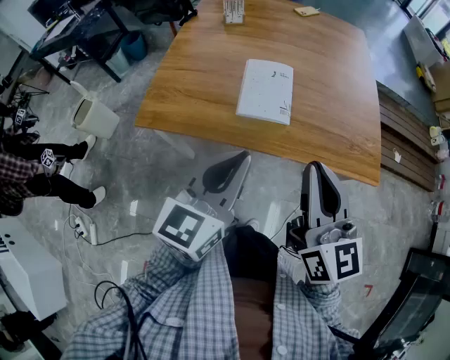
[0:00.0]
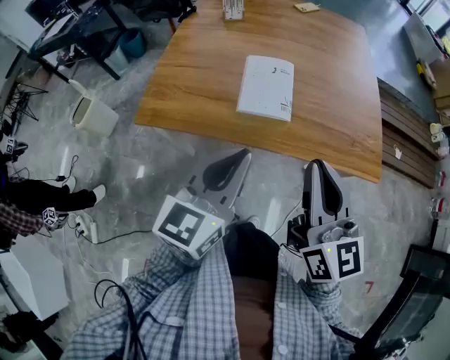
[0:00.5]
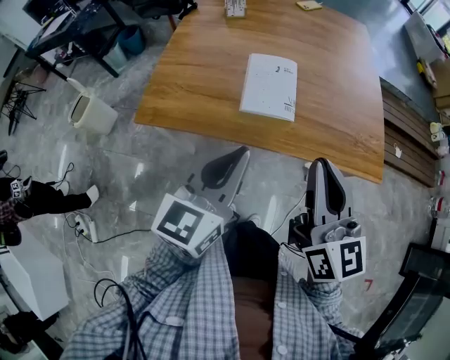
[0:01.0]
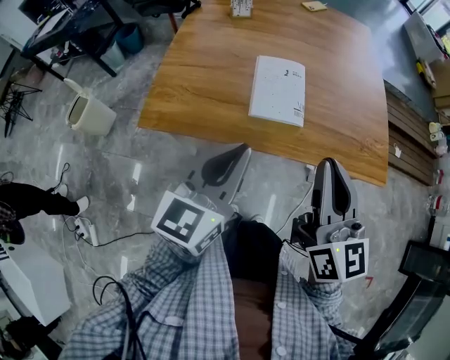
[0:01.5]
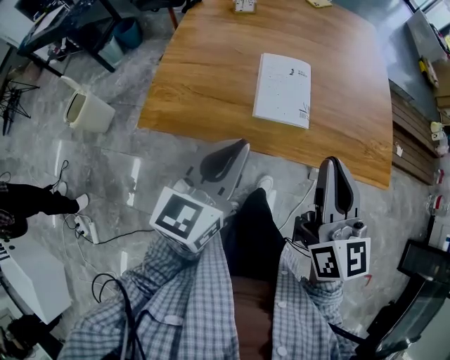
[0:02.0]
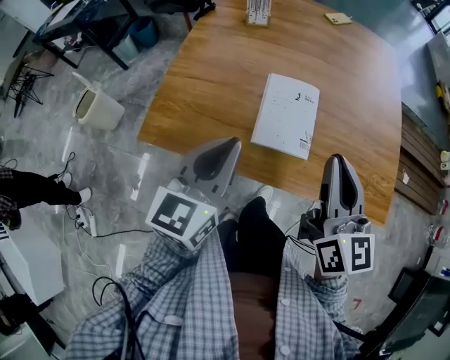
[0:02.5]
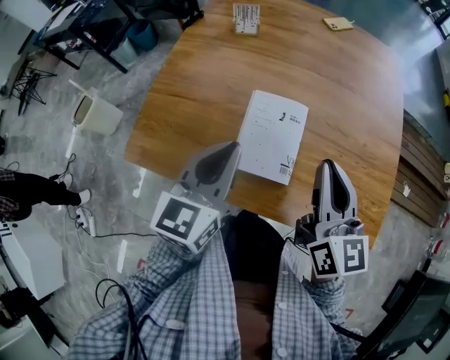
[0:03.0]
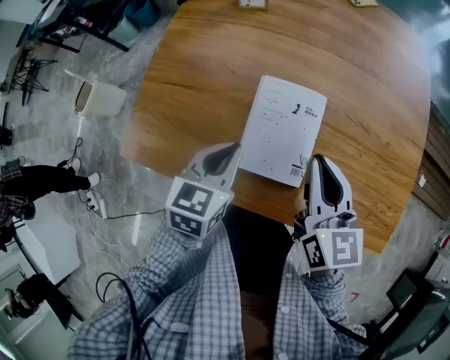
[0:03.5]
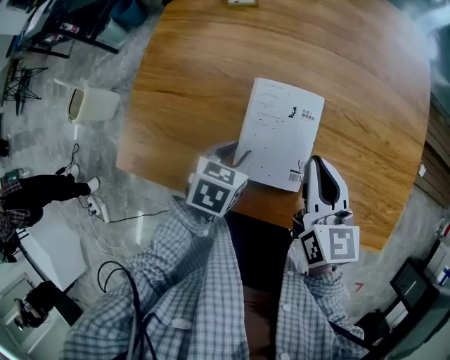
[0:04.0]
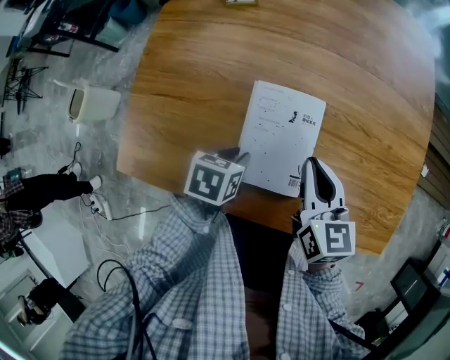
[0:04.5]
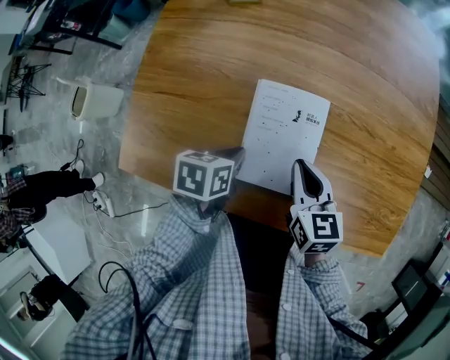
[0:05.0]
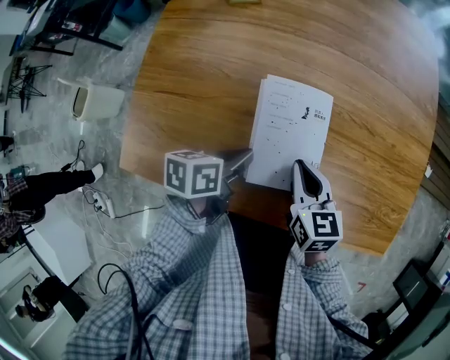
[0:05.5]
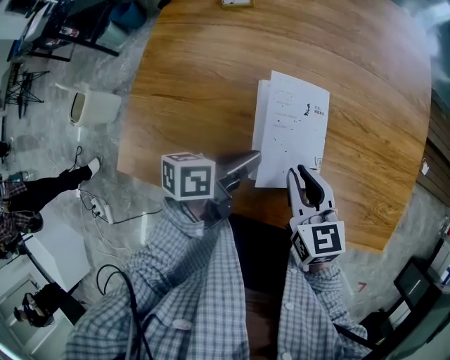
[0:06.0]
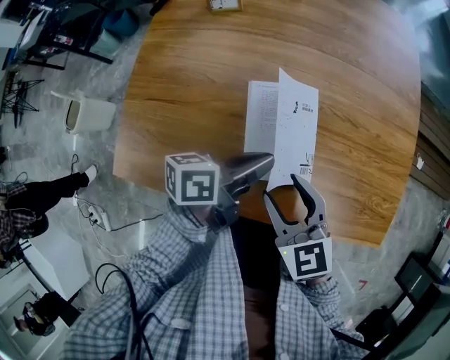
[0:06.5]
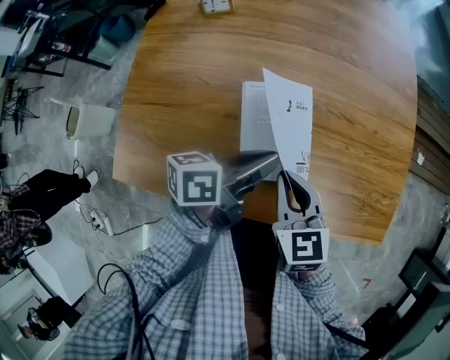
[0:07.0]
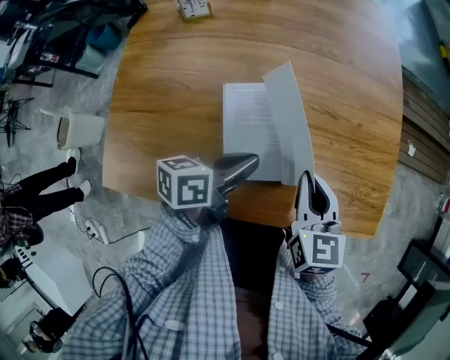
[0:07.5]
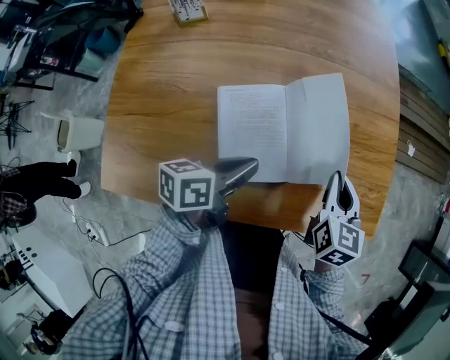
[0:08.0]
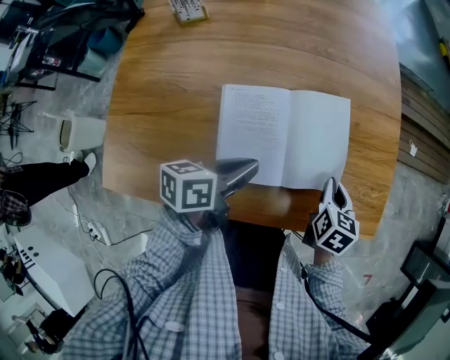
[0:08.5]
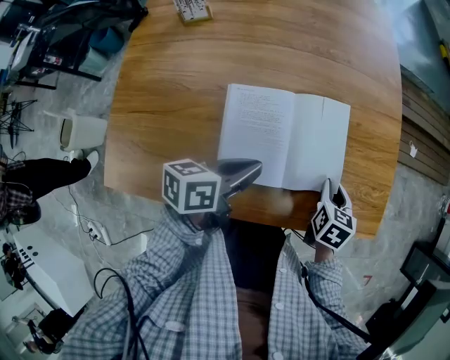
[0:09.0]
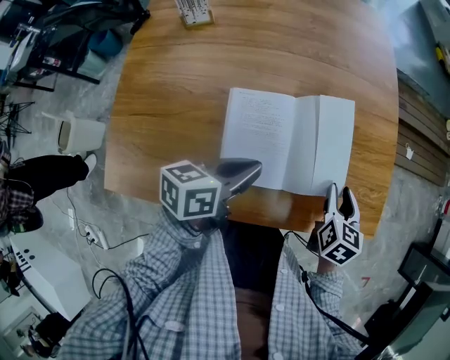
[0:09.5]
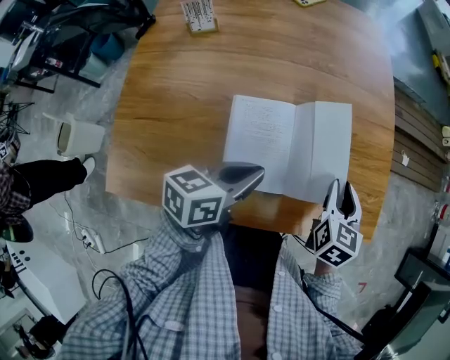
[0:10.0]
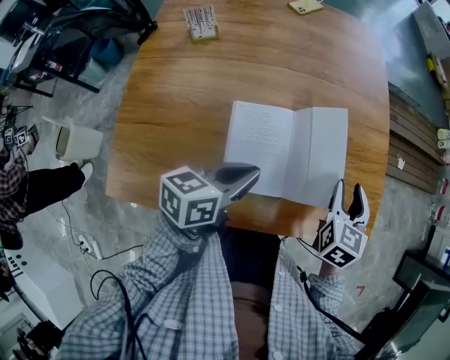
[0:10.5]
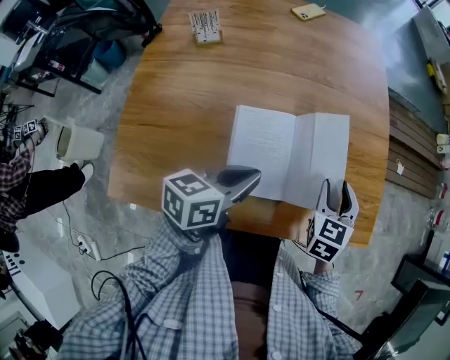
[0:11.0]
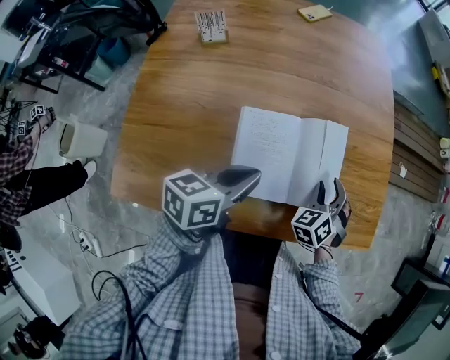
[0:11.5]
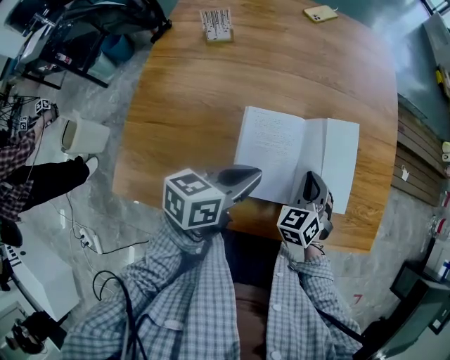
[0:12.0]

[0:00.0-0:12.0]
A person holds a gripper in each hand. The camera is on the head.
0:00.0 to 0:02.0: The right gripper goes roughly 10 cm forward and to the left; the left gripper moves to the left and forward, some 10 cm.
0:02.0 to 0:04.0: The right gripper goes some 30 cm forward and downward, and rotates approximately 20 degrees, while the left gripper goes about 35 cm downward and forward, angles its fingers downward, by some 50 degrees, and opens its fingers.
0:04.0 to 0:06.0: The left gripper shifts about 5 cm upward, angles its fingers upward, by approximately 30 degrees, and closes up, while the right gripper shifts approximately 5 cm downward.
0:06.0 to 0:08.0: The left gripper moves to the right, some 10 cm, while the right gripper travels to the right by about 20 cm, rotates some 40 degrees, and opens, then closes once more.
0:08.0 to 0:10.0: The right gripper travels downward and back again, some 10 cm each way, and opens its fingers.
0:10.0 to 0:12.0: The right gripper goes about 10 cm to the left and downward, rolls counterclockwise, seen from behind, by about 40 degrees, and closes up.

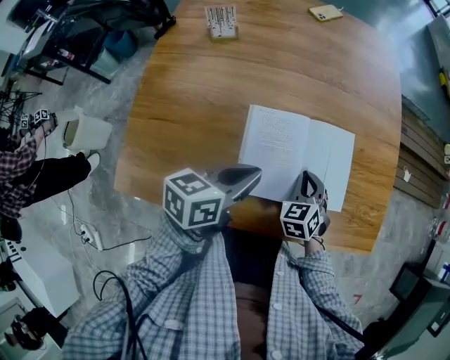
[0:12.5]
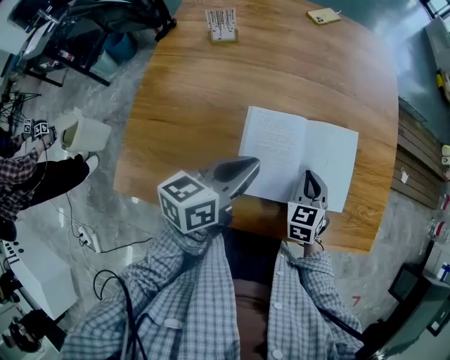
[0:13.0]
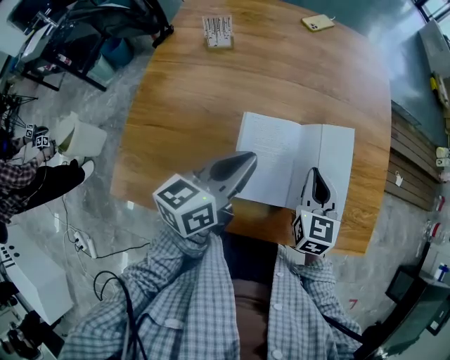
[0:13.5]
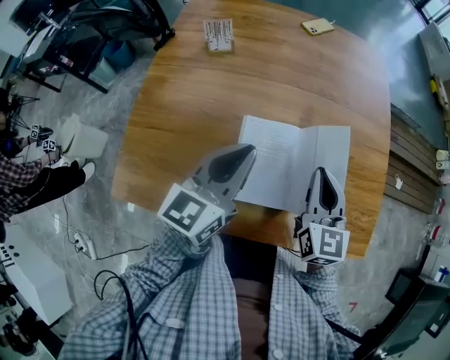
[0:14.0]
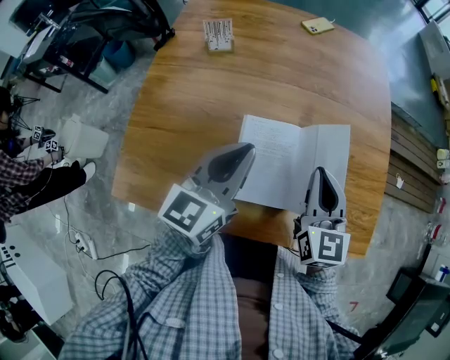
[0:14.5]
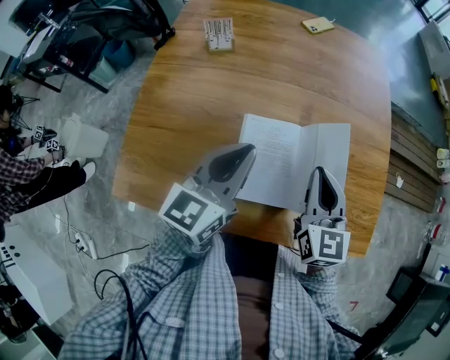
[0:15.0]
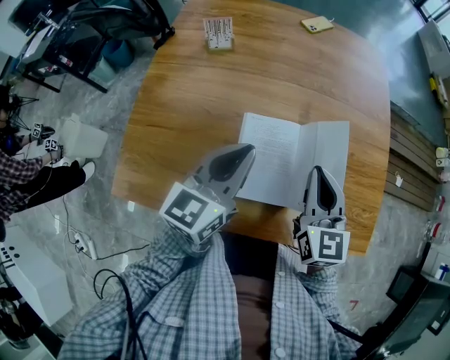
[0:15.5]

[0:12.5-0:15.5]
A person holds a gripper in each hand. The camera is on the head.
0:12.5 to 0:14.0: The right gripper is displaced upward by some 20 cm, and tilts its fingers about 30 degrees upward, while the left gripper heads upward, covering about 10 cm, and rotates approximately 40 degrees.
0:14.0 to 0:15.5: There are only small adjustments of the grippers.

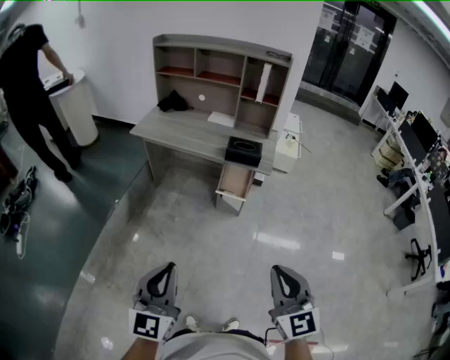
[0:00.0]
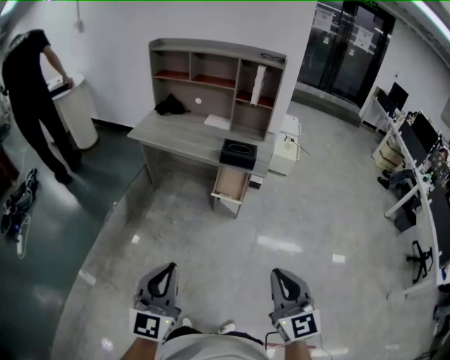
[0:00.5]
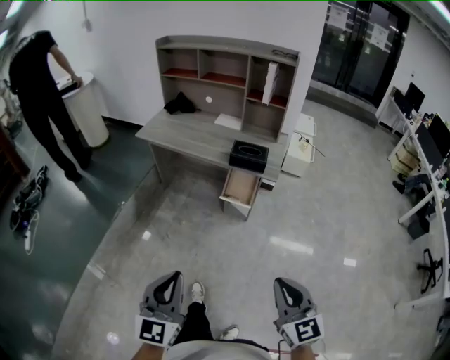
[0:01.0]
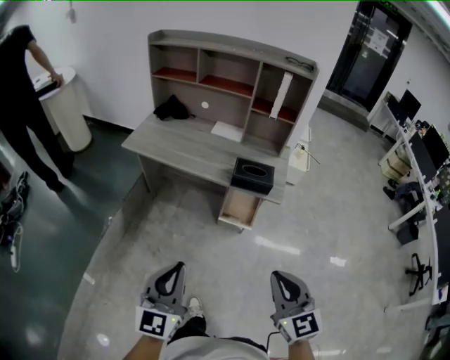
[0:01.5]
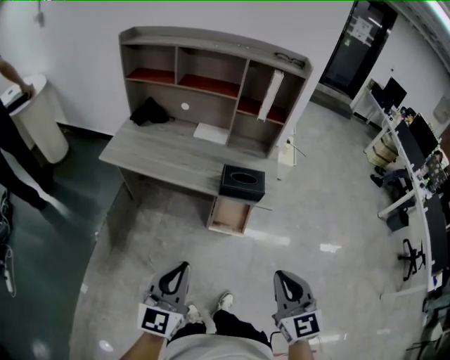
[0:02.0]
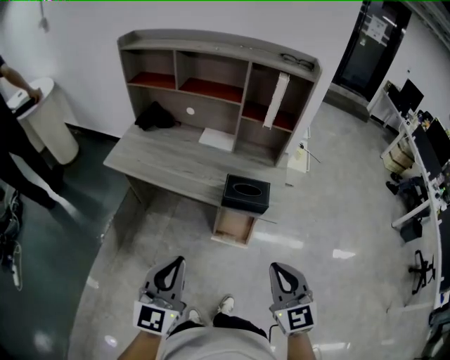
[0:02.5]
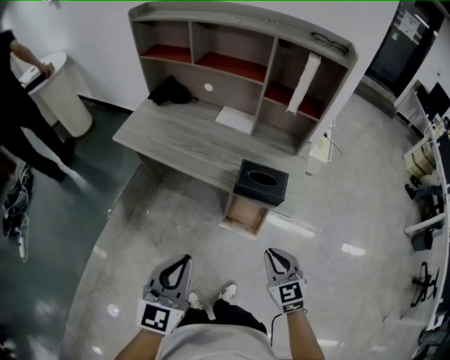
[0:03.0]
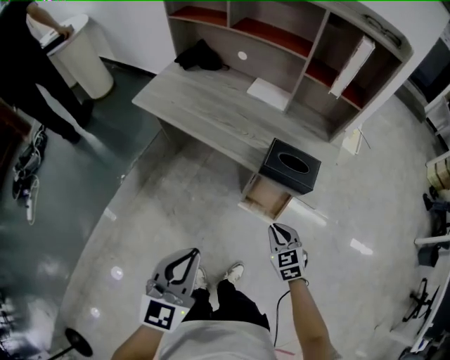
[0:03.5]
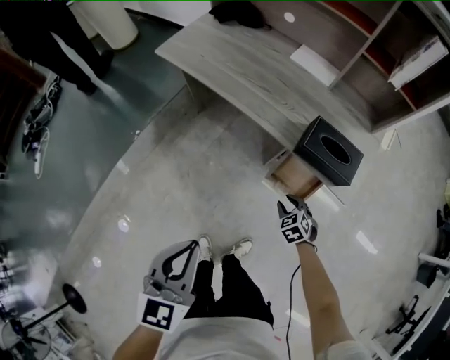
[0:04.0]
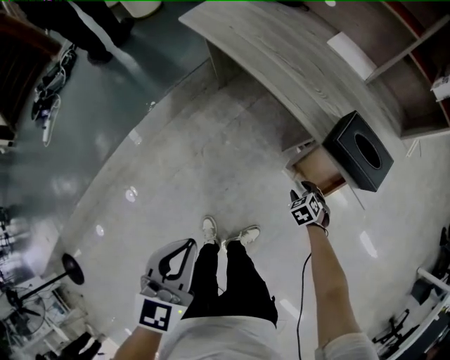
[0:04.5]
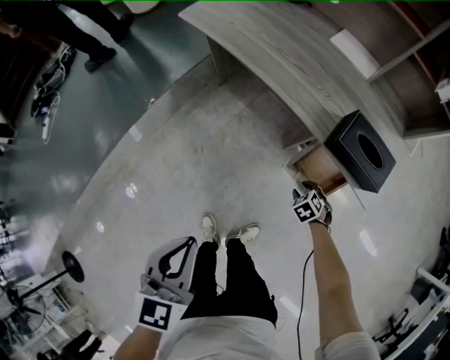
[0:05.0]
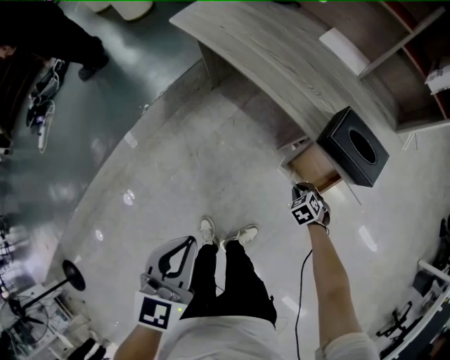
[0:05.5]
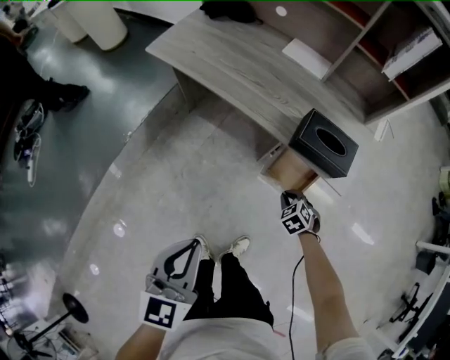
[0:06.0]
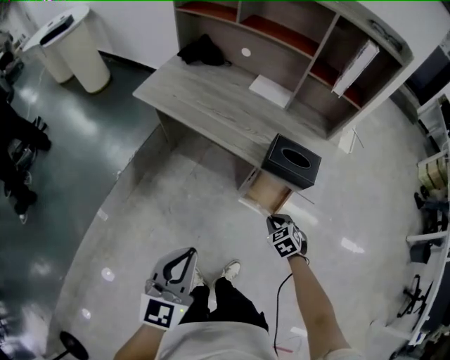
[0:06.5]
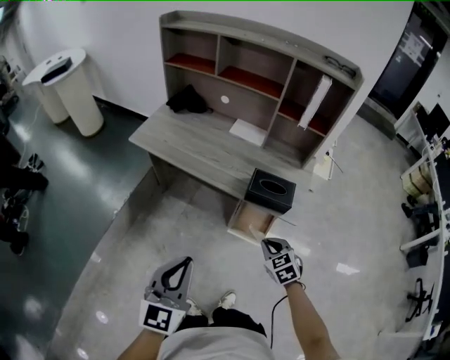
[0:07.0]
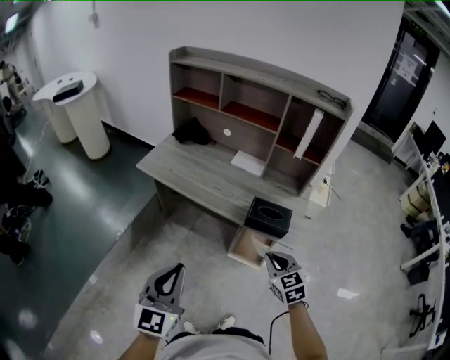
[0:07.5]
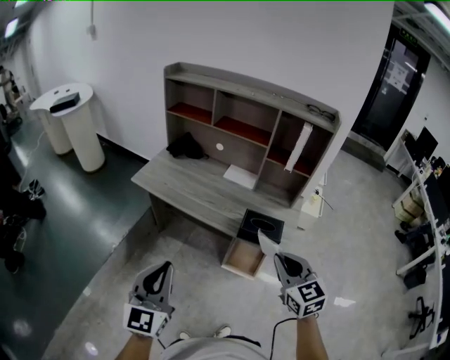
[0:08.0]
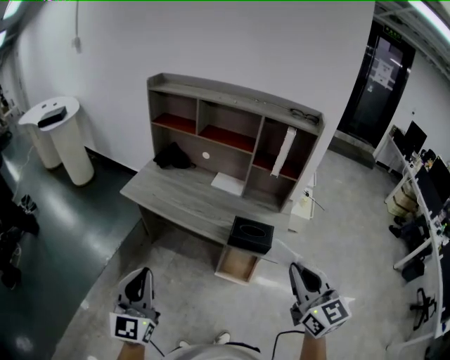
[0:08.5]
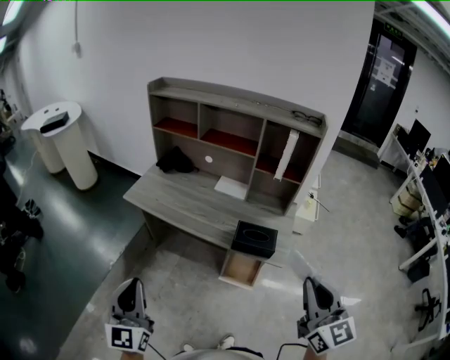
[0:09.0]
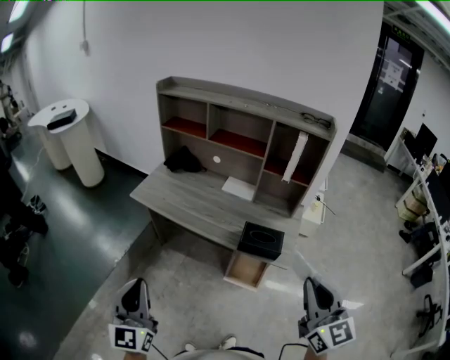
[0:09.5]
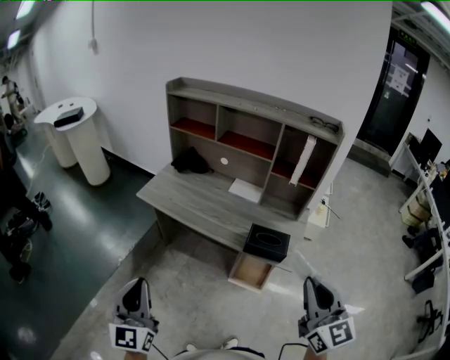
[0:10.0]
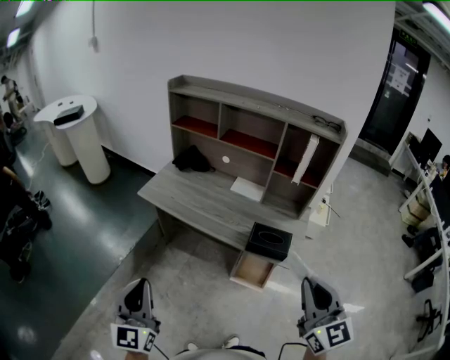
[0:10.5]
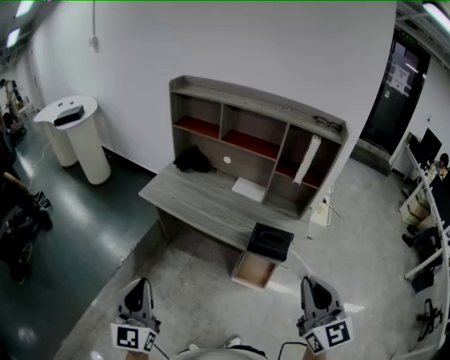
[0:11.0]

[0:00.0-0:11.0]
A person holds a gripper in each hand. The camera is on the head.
0:00.0 to 0:02.0: Both grippers travel together forward, approximately 30 cm.
0:02.0 to 0:03.5: The right gripper shifts approximately 35 cm downward and forward, and turns by some 30 degrees. The left gripper is displaced forward and downward by roughly 10 cm.
0:03.5 to 0:05.5: The right gripper travels downward by roughly 25 cm, angles its fingers downward, by about 30 degrees, and opens, then closes again, while the left gripper shifts some 10 cm downward, and turns by about 20 degrees.
0:05.5 to 0:07.5: The left gripper heads upward, covering about 20 cm, and turns by roughly 30 degrees. The right gripper shifts about 40 cm upward, and angles its fingers upward, by approximately 40 degrees.
0:07.5 to 0:09.0: The left gripper shifts roughly 10 cm to the left. Meanwhile the right gripper shifts approximately 25 cm upward, and angles its fingers upward, by some 30 degrees.
0:09.0 to 0:11.0: The right gripper heads to the left, covering approximately 5 cm.
